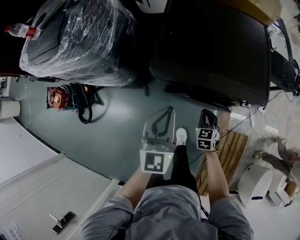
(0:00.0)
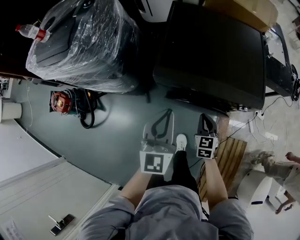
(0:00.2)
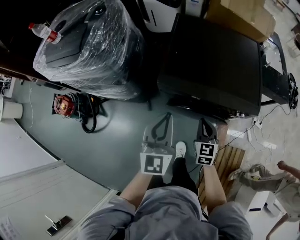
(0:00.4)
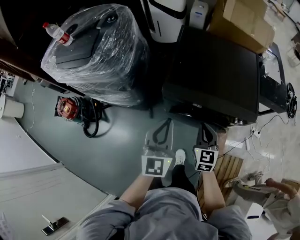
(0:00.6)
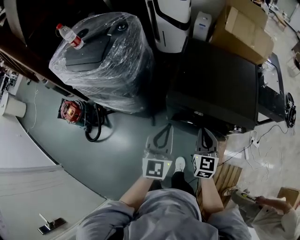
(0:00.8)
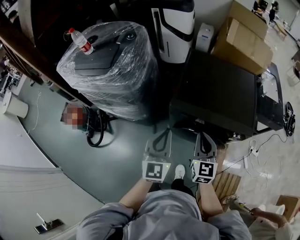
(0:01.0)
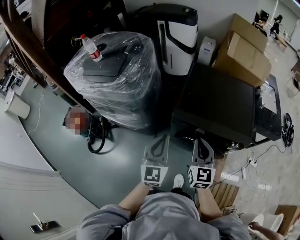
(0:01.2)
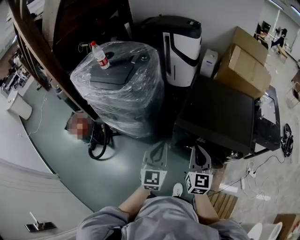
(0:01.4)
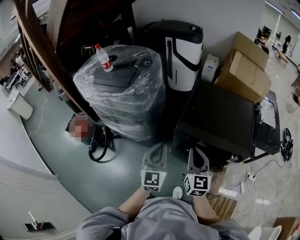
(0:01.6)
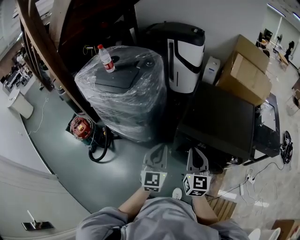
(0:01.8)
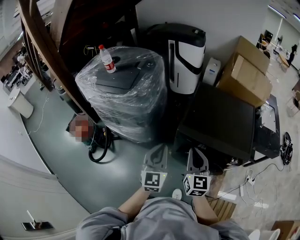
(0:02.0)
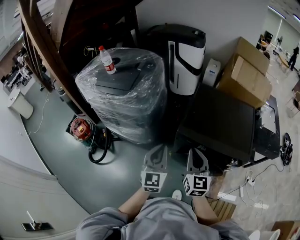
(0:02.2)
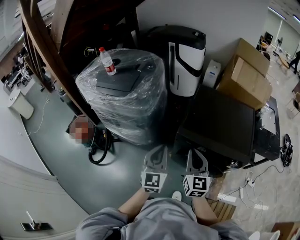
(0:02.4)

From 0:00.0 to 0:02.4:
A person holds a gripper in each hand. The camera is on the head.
From 0:00.0 to 0:01.2: The left gripper travels upward and to the left by about 15 cm, while the right gripper travels upward by some 35 cm, and points its fingers roughly 40 degrees further upward.
From 0:01.2 to 0:02.4: The right gripper heads to the left, covering approximately 5 cm.

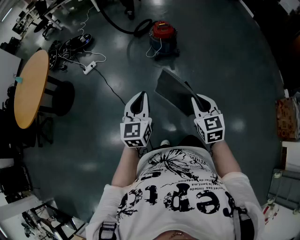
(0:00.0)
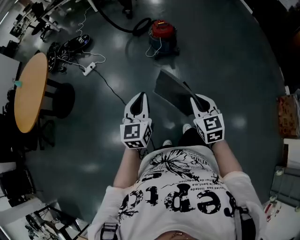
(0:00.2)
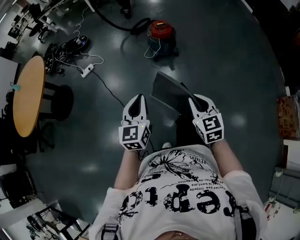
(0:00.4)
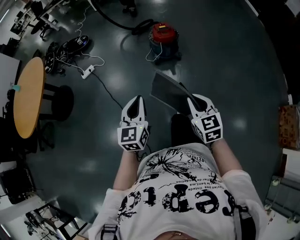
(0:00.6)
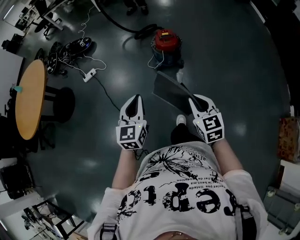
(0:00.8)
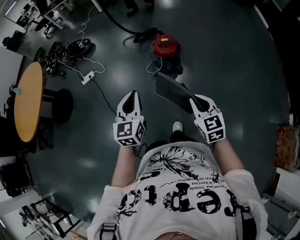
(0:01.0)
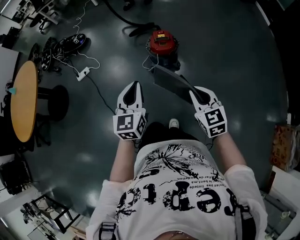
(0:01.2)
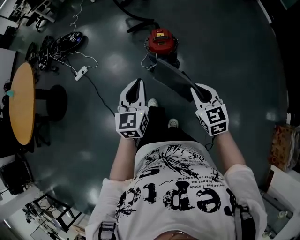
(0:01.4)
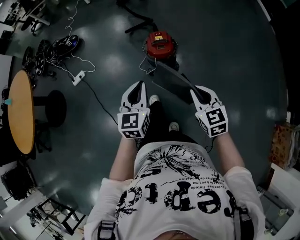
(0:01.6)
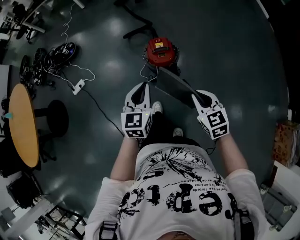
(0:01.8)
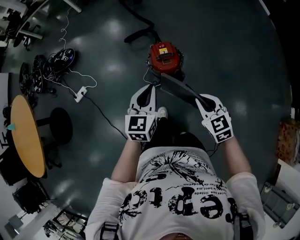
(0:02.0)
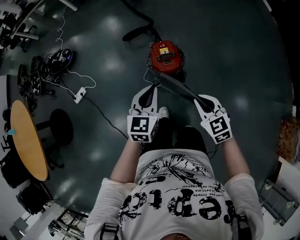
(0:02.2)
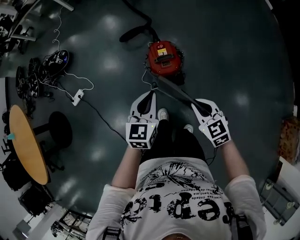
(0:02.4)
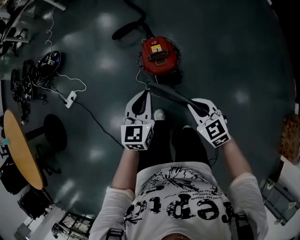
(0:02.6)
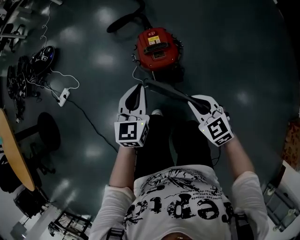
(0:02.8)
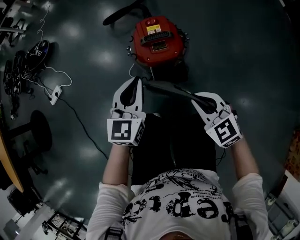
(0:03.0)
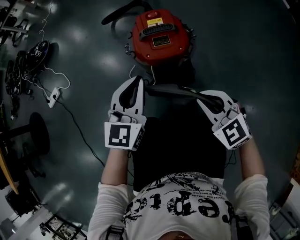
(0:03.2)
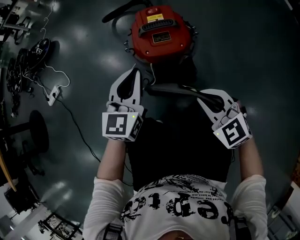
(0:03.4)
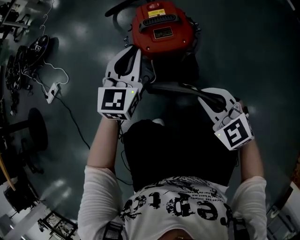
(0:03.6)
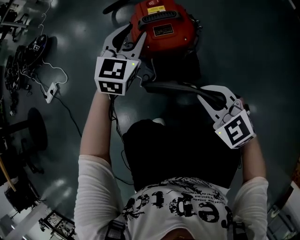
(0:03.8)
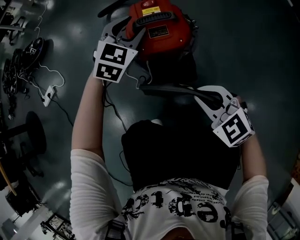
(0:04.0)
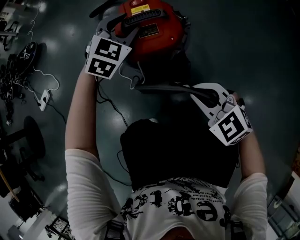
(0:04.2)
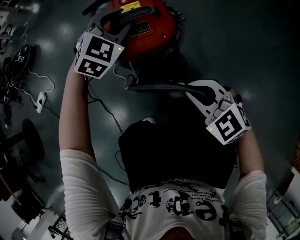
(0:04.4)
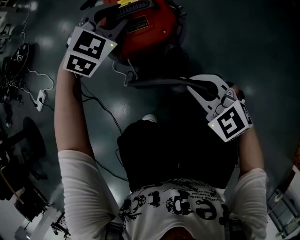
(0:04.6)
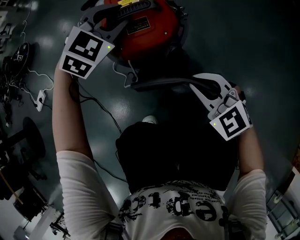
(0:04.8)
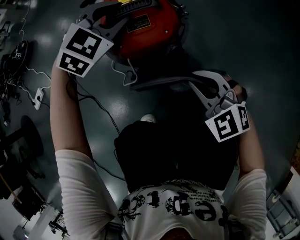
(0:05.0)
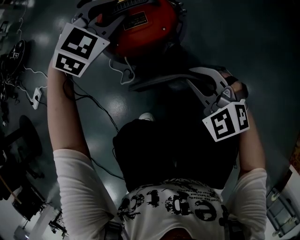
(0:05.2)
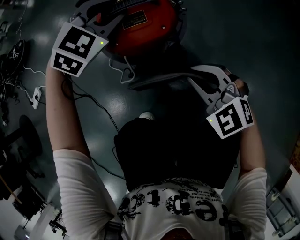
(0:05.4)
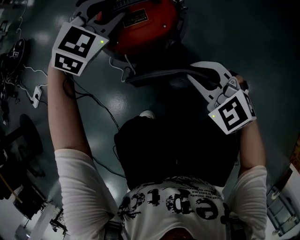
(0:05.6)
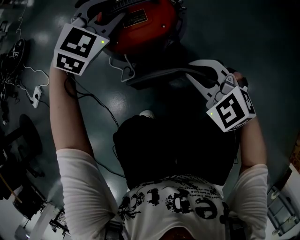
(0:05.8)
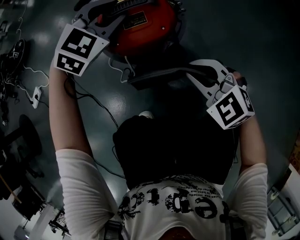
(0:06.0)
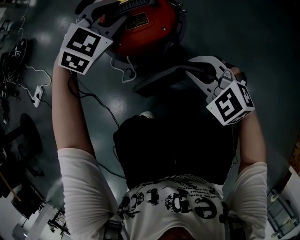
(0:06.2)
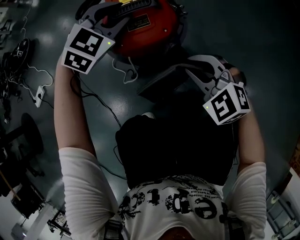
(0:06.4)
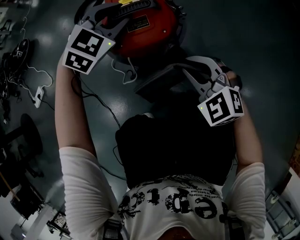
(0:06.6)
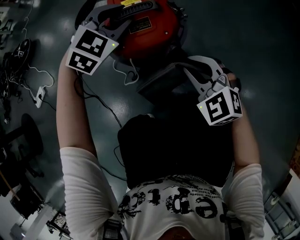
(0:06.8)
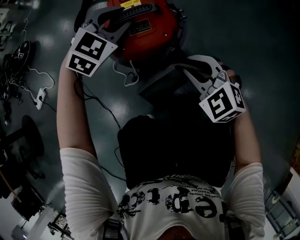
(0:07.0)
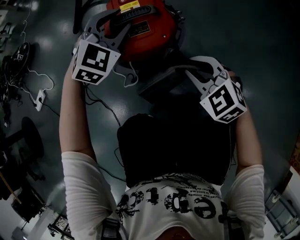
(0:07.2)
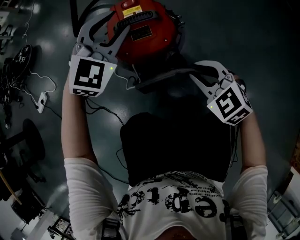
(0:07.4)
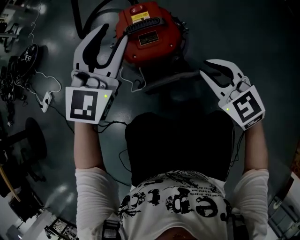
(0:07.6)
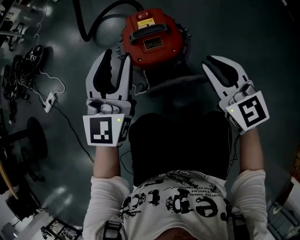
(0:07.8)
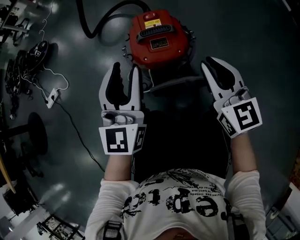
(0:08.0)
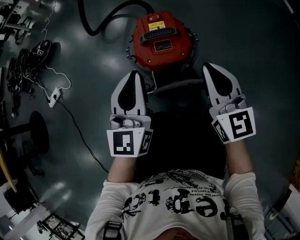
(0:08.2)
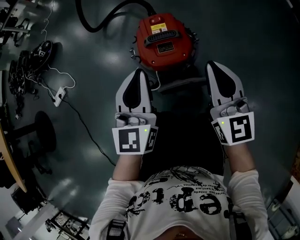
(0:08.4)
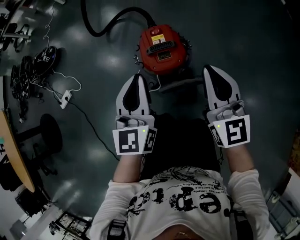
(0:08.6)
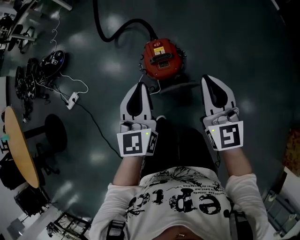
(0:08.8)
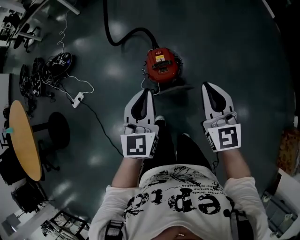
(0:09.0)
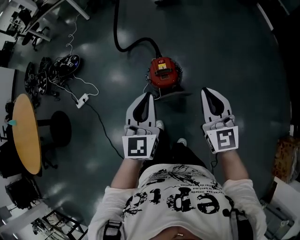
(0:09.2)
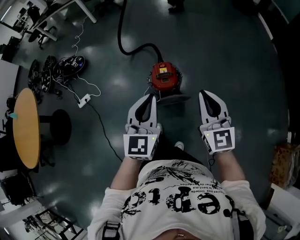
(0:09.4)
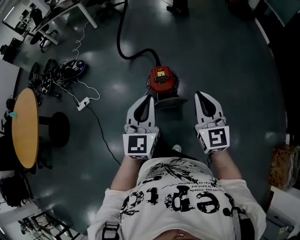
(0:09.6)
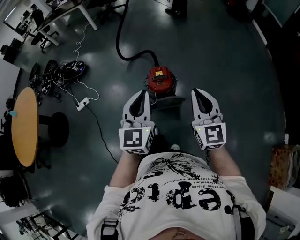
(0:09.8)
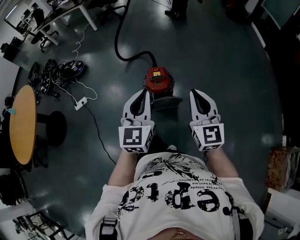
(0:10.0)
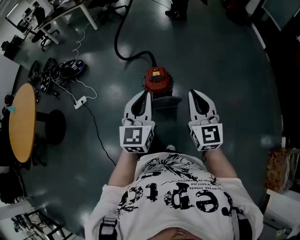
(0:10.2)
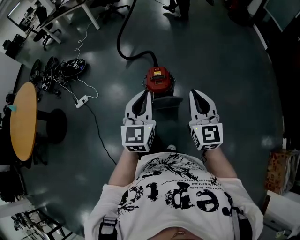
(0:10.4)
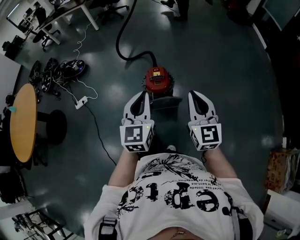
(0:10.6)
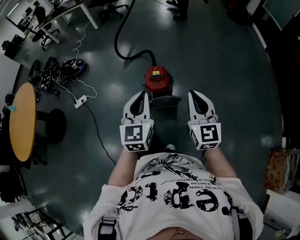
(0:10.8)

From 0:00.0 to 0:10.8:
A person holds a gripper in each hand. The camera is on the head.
From 0:00.0 to 0:01.6: The pair of grippers is taken forward, approximately 50 cm.
From 0:01.6 to 0:03.0: Both grippers move downward and forward, roughly 40 cm. The right gripper changes its angle by about 20 degrees.
From 0:03.0 to 0:04.6: The right gripper moves downward, about 15 cm; the left gripper goes some 25 cm forward, downward and to the right, rotates around the line of its fingers by some 40 degrees, clockwise from behind, and opens its fingers.
From 0:04.6 to 0:06.2: There are only small adjustments of the grippers.
From 0:06.2 to 0:07.8: The right gripper moves upward, roughly 15 cm, and swivels roughly 40 degrees; the left gripper is displaced upward and backward by approximately 20 cm, and points its fingers roughly 40 degrees further upward.
From 0:07.8 to 0:09.2: The two grippers go about 50 cm upward. The left gripper closes.
From 0:09.2 to 0:10.8: Both grippers move backward, about 10 cm.

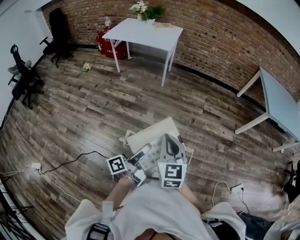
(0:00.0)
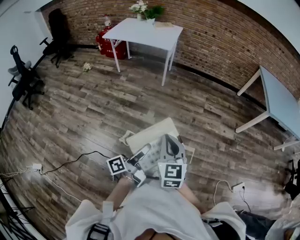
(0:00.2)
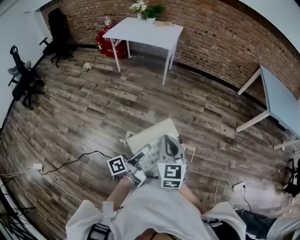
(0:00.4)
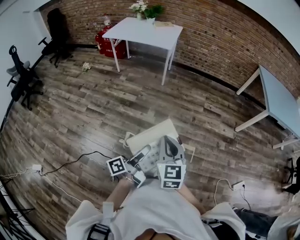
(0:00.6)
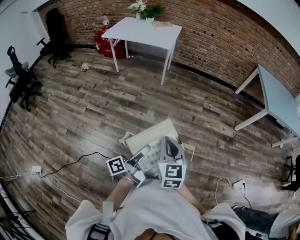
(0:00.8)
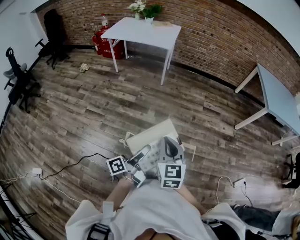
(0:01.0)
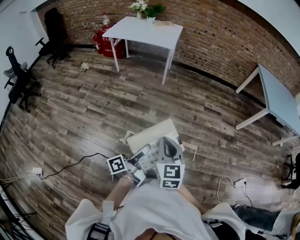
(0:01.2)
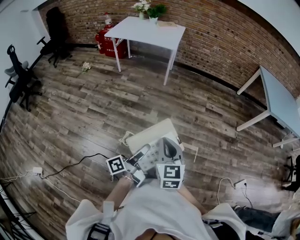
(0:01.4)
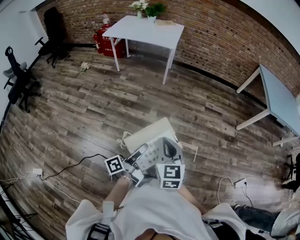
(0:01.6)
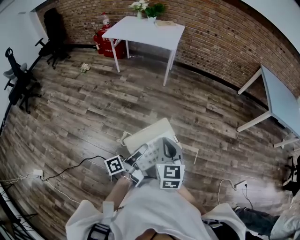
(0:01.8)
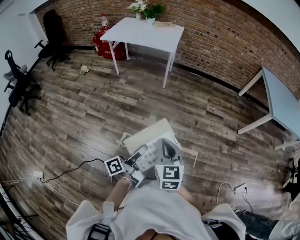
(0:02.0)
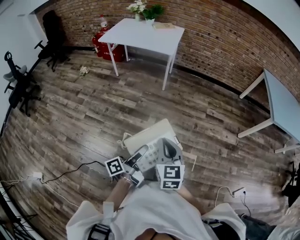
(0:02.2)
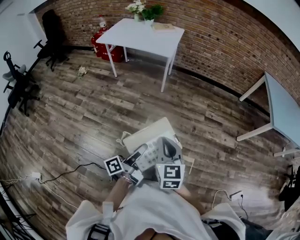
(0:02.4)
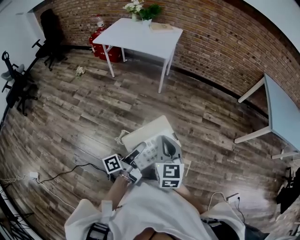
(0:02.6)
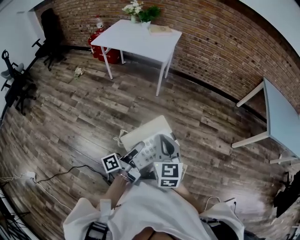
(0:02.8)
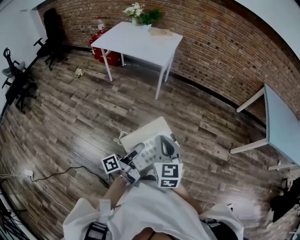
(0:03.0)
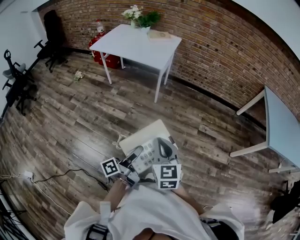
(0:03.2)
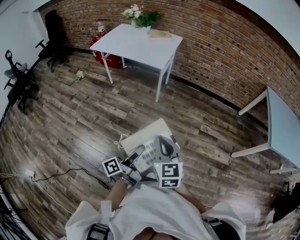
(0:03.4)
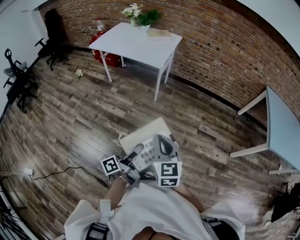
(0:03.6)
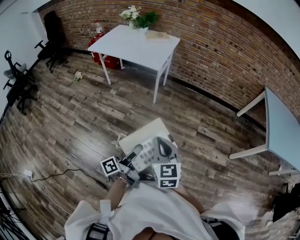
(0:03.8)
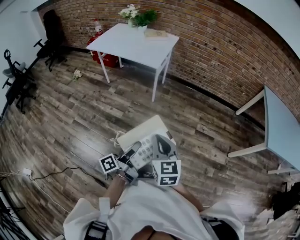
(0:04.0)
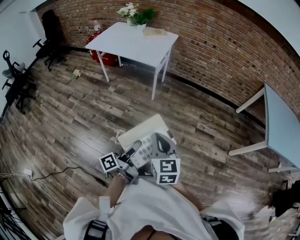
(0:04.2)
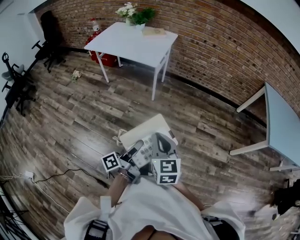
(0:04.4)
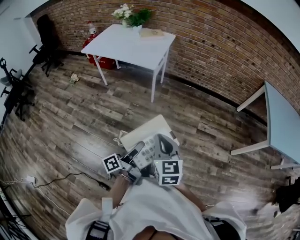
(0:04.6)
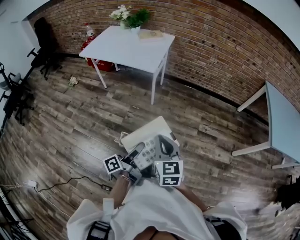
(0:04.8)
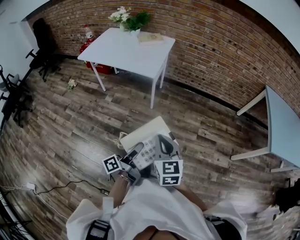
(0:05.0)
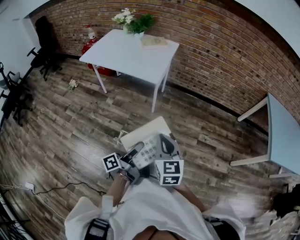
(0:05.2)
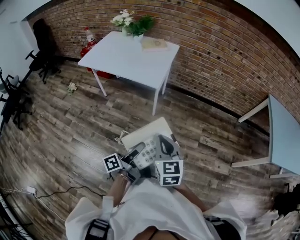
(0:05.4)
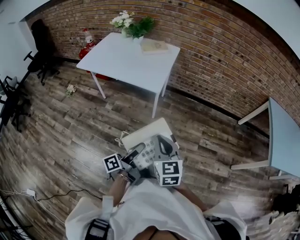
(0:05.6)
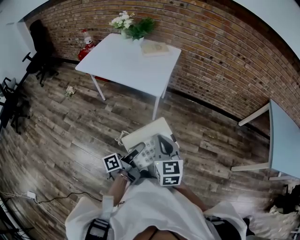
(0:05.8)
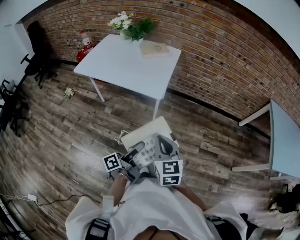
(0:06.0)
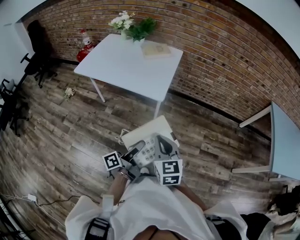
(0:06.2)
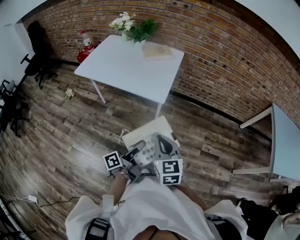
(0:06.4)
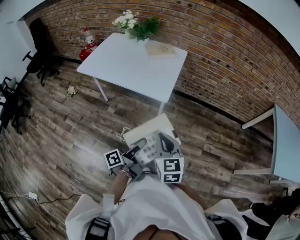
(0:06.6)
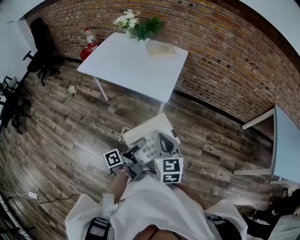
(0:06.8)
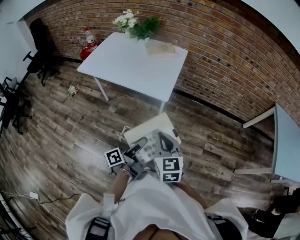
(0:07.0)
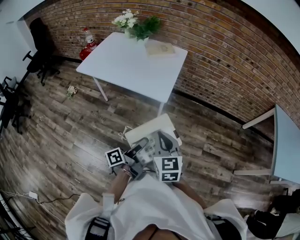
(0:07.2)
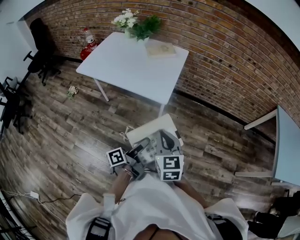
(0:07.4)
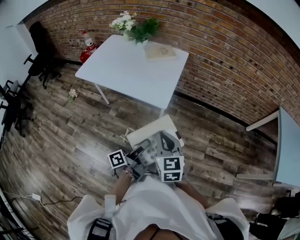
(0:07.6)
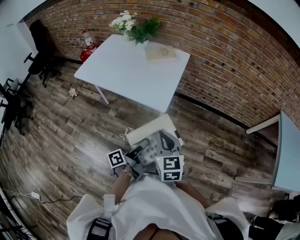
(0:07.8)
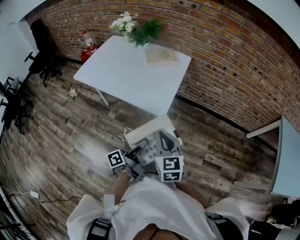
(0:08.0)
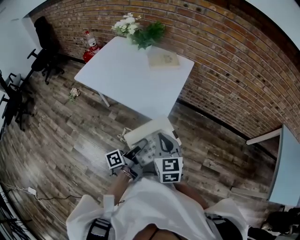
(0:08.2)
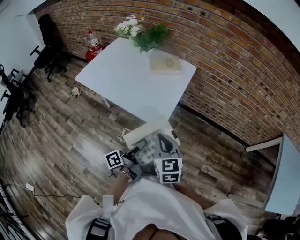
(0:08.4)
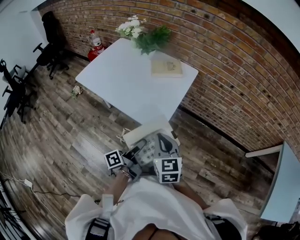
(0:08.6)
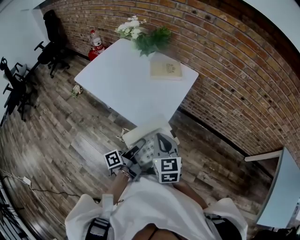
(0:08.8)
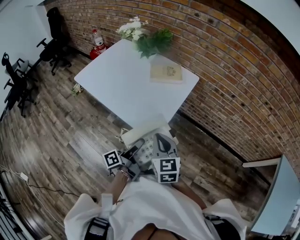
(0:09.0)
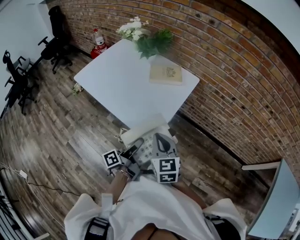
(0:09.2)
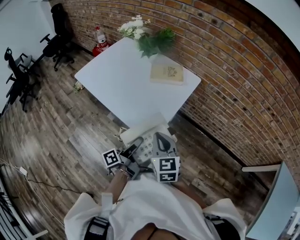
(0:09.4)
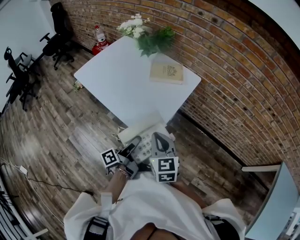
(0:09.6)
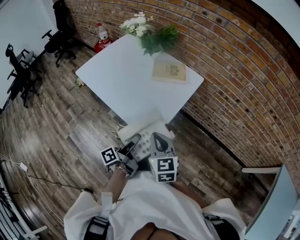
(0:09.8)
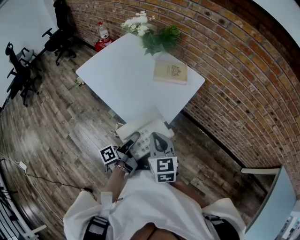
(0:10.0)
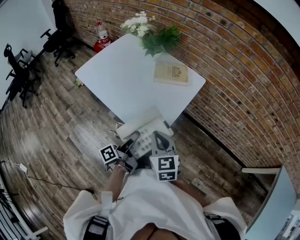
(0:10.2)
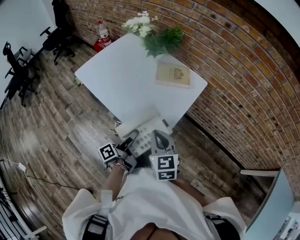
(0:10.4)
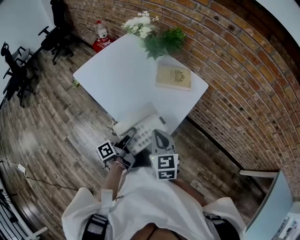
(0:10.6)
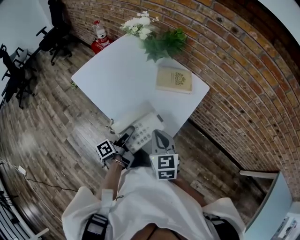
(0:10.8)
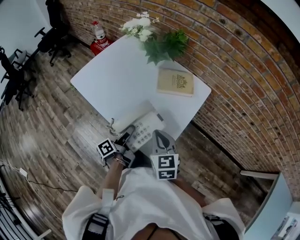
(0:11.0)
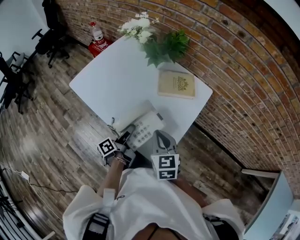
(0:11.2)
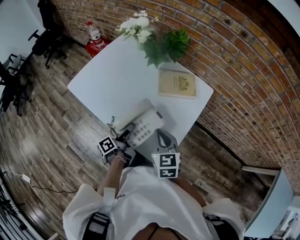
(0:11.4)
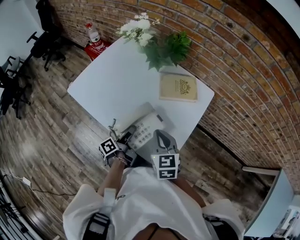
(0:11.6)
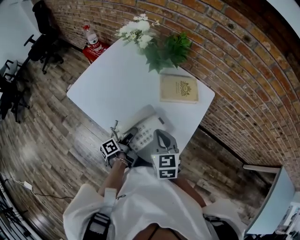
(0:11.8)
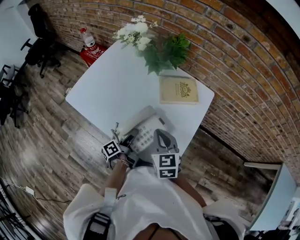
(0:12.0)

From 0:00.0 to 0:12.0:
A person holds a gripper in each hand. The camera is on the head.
From 0:00.0 to 0:01.6: The right gripper moves roughly 10 cm.
From 0:01.6 to 0:03.0: The right gripper shifts by about 30 cm.
From 0:03.0 to 0:04.4: The right gripper shifts by approximately 10 cm.
From 0:04.4 to 0:06.0: The right gripper moves approximately 30 cm.
From 0:06.0 to 0:07.6: The right gripper shifts by about 10 cm.
From 0:07.6 to 0:09.0: The right gripper changes place by about 20 cm.
From 0:09.0 to 0:10.4: The right gripper shifts by approximately 10 cm.
From 0:10.4 to 0:12.0: The right gripper ends up roughly 20 cm from where it was.
